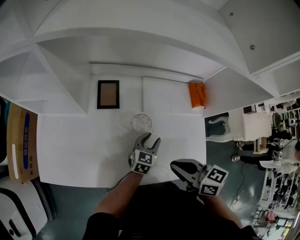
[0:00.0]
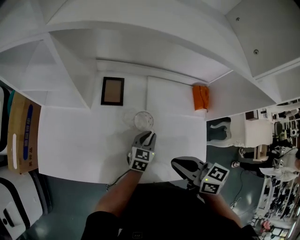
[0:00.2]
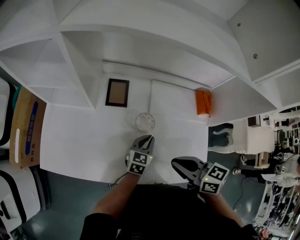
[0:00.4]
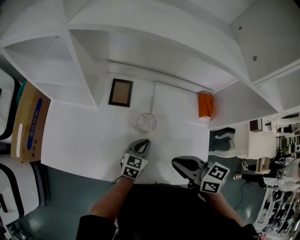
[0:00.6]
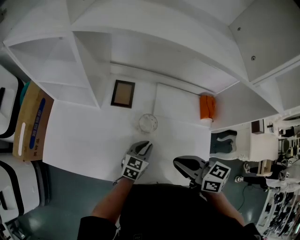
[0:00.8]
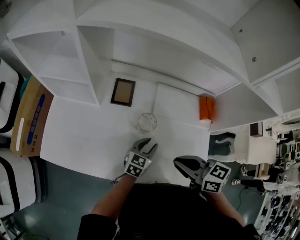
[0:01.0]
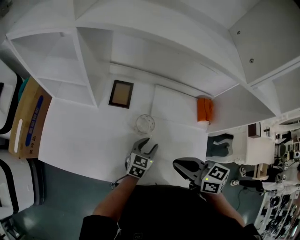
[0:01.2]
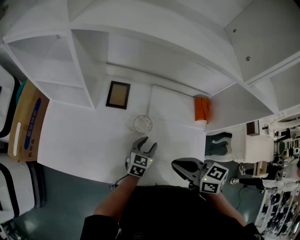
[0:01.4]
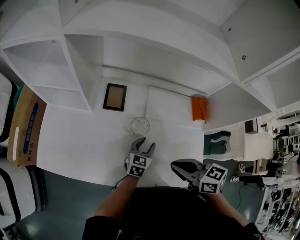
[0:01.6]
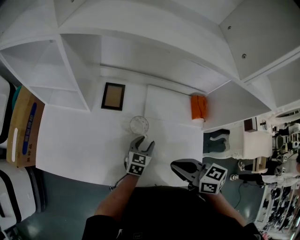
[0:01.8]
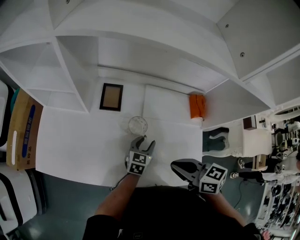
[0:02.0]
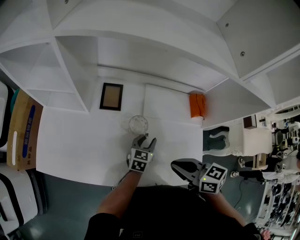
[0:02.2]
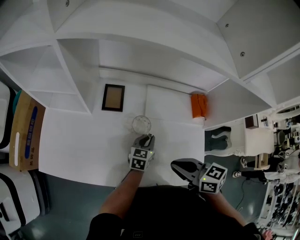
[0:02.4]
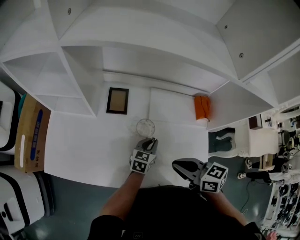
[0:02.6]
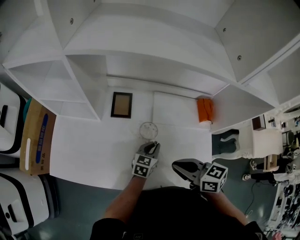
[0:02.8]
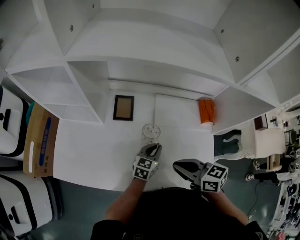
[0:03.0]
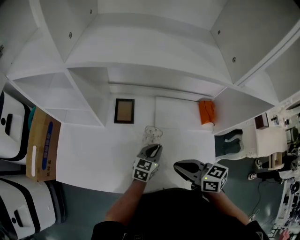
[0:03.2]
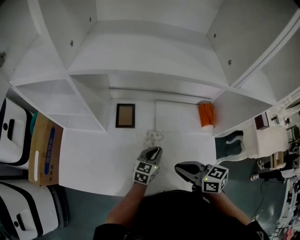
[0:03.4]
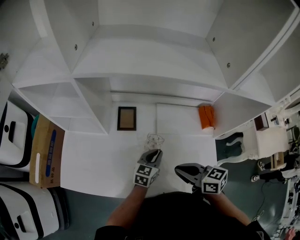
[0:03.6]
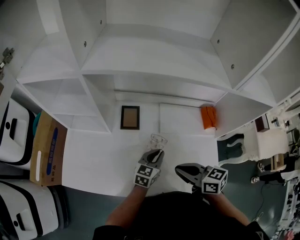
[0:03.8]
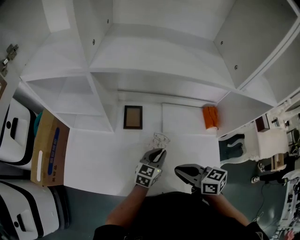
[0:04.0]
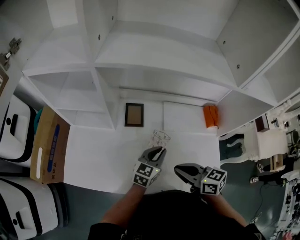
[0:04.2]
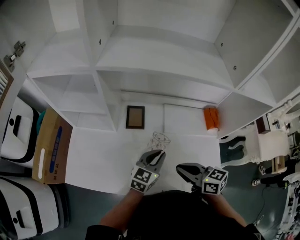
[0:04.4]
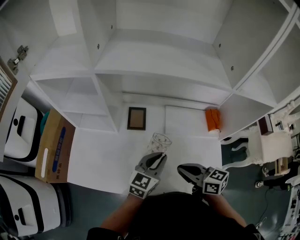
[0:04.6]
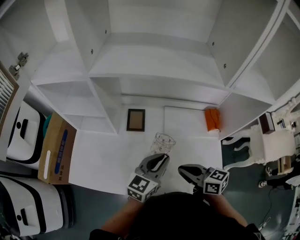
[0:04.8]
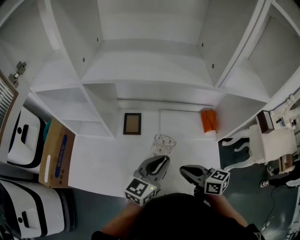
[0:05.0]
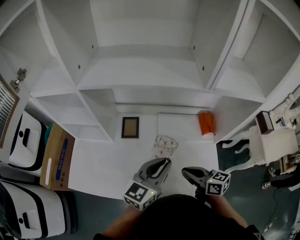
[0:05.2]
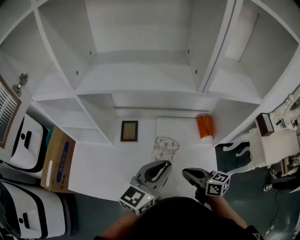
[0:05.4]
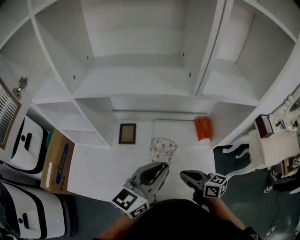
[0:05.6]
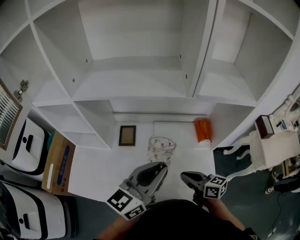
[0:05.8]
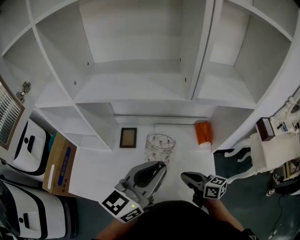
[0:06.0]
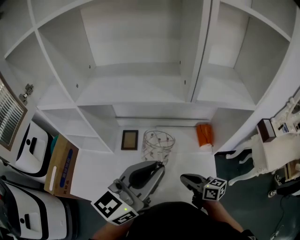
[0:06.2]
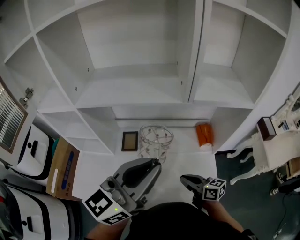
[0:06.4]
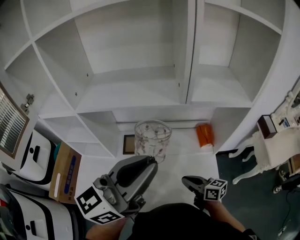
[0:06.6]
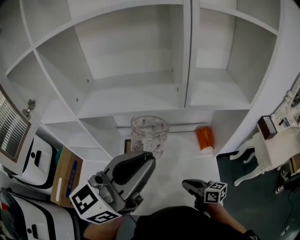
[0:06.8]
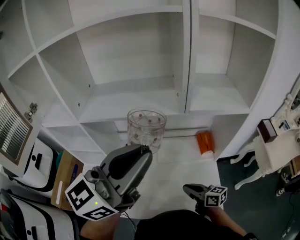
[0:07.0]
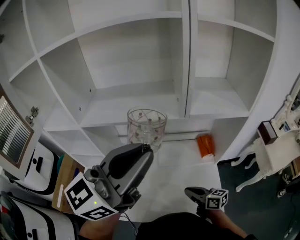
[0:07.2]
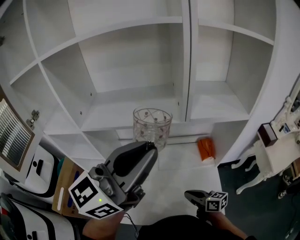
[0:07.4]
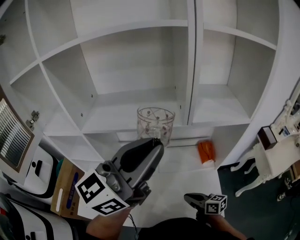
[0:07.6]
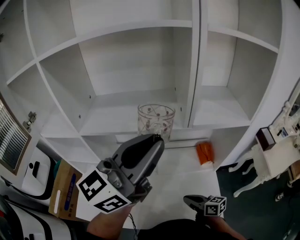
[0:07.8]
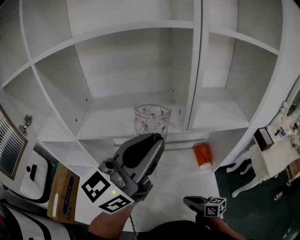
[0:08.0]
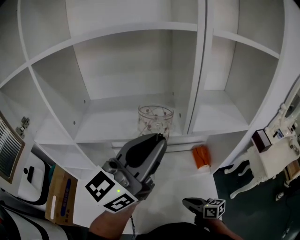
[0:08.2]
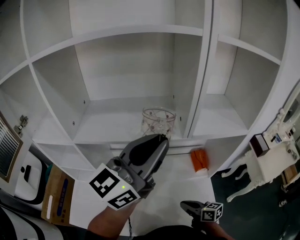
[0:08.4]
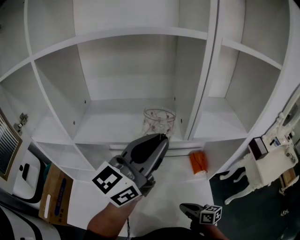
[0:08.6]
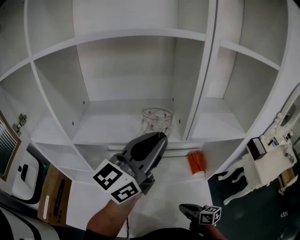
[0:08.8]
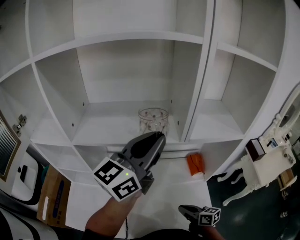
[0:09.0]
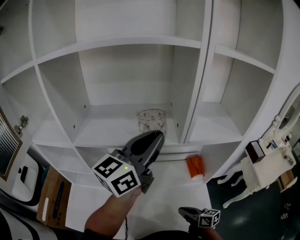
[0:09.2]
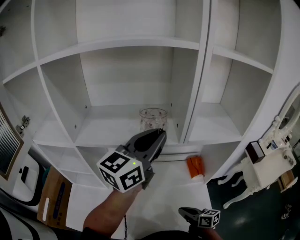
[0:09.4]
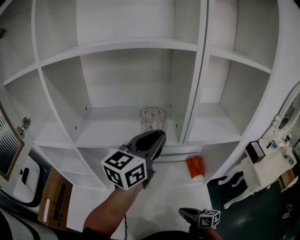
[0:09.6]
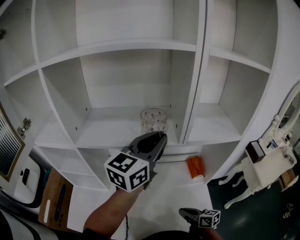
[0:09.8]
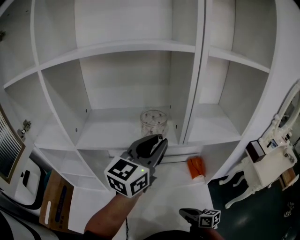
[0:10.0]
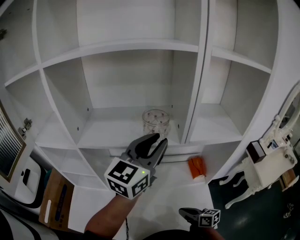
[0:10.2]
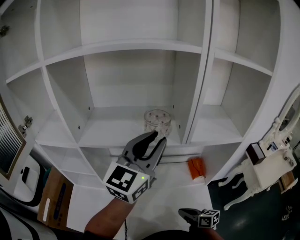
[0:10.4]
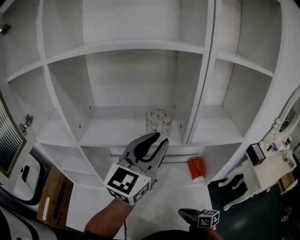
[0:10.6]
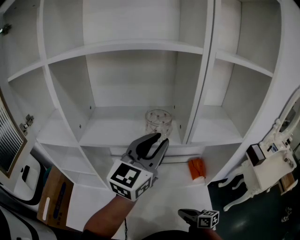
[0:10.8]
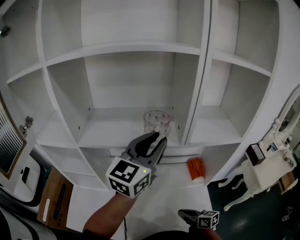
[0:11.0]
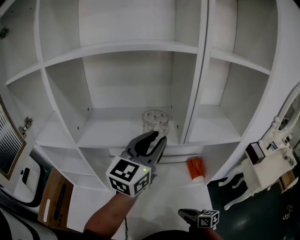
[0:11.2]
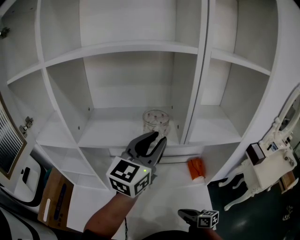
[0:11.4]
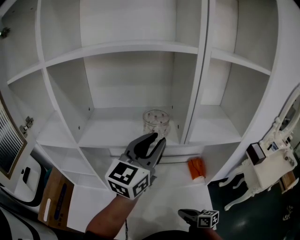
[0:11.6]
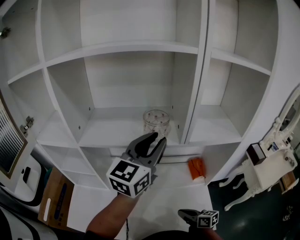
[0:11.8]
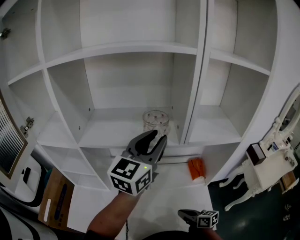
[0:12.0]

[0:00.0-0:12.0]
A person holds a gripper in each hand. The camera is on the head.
0:00.0 to 0:01.6: The left gripper closes and opens again.
0:01.6 to 0:03.0: The left gripper closes its fingers.
0:03.0 to 0:04.4: The left gripper travels upward and to the left by about 10 cm.
0:04.4 to 0:06.0: The right gripper moves to the right, about 15 cm, while the left gripper heads upward, covering approximately 25 cm, and changes its angle by about 20 degrees.
0:06.0 to 0:07.6: The left gripper moves upward, about 20 cm.
0:07.6 to 0:09.0: The left gripper is displaced forward by some 10 cm.
0:09.0 to 0:10.4: The left gripper changes its angle by roughly 20 degrees.
0:10.4 to 0:12.0: The grippers stay close to where they were, moving slightly.

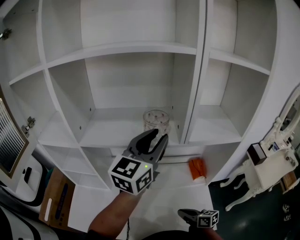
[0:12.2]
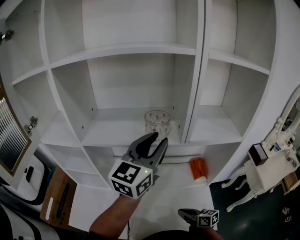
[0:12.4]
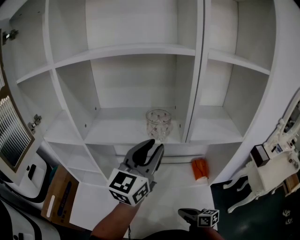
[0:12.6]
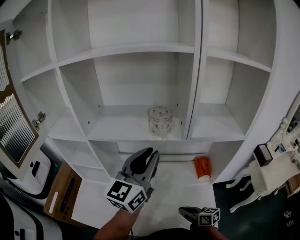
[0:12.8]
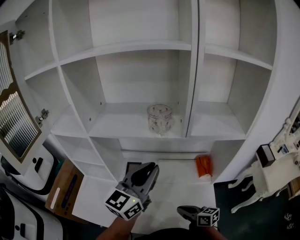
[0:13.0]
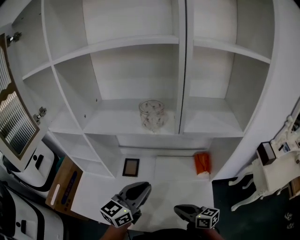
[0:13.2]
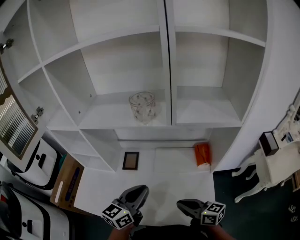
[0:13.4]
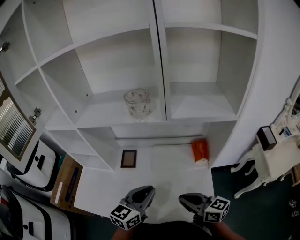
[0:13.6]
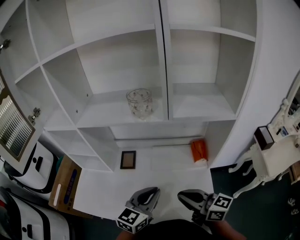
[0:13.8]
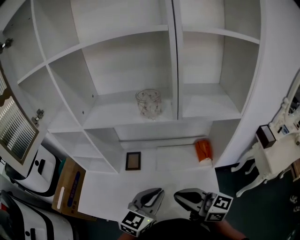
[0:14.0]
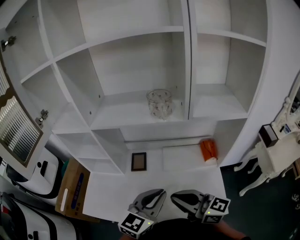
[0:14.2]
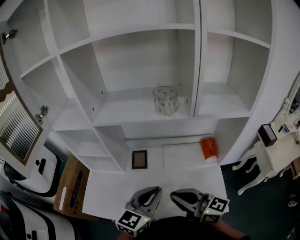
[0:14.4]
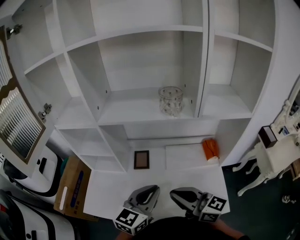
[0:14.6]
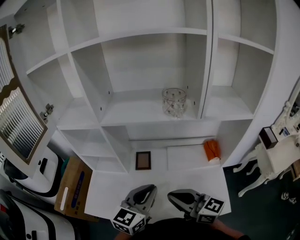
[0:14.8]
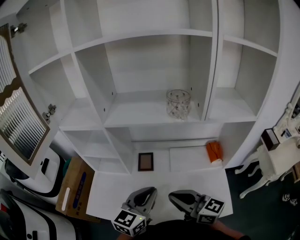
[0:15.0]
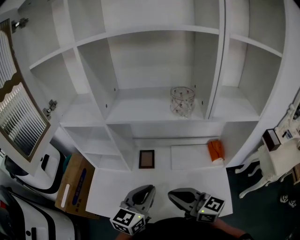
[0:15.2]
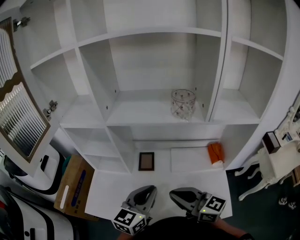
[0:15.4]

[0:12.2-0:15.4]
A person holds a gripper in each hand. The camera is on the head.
0:12.2 to 0:13.8: The left gripper heads downward and backward, covering approximately 30 cm, swivels approximately 20 degrees, and closes its fingers. Meanwhile the right gripper travels upward by some 15 cm, and turns by roughly 30 degrees.
0:13.8 to 0:15.4: The two grippers go roughly 15 cm to the left.

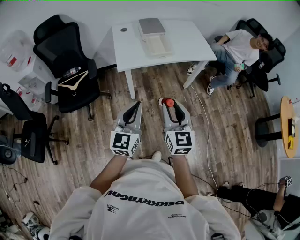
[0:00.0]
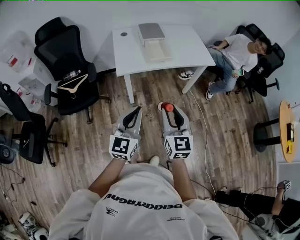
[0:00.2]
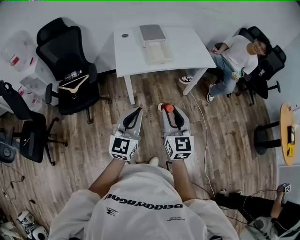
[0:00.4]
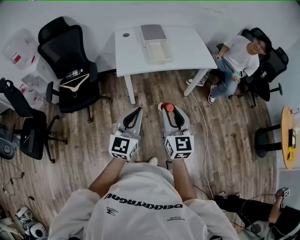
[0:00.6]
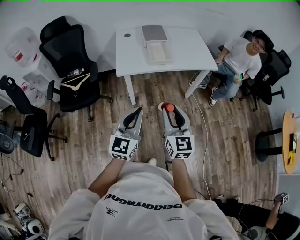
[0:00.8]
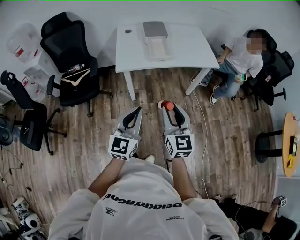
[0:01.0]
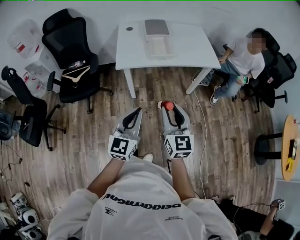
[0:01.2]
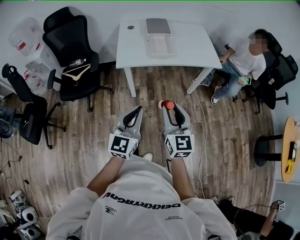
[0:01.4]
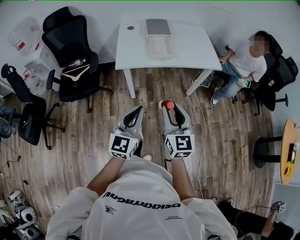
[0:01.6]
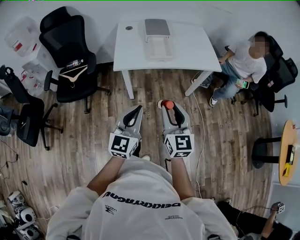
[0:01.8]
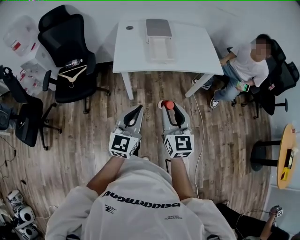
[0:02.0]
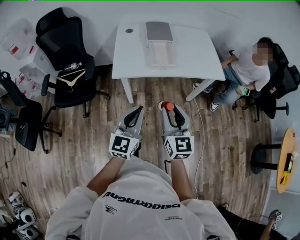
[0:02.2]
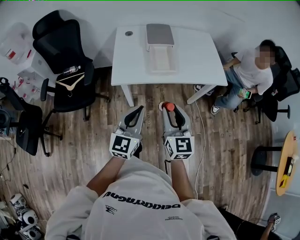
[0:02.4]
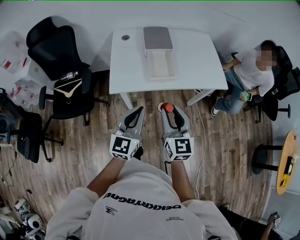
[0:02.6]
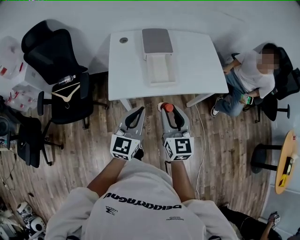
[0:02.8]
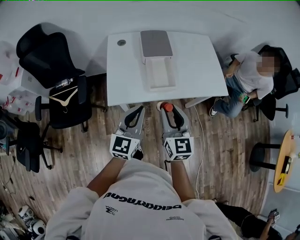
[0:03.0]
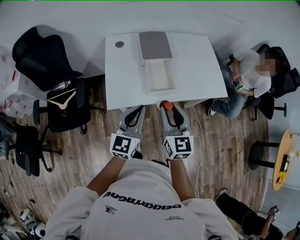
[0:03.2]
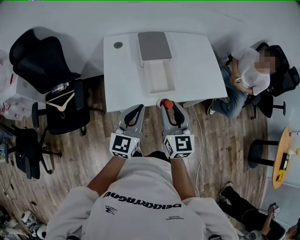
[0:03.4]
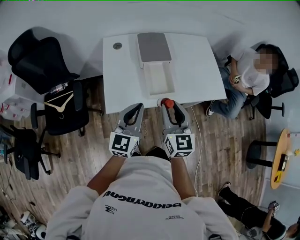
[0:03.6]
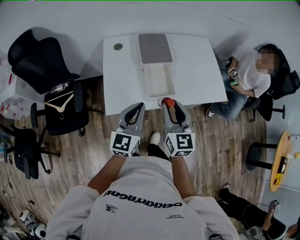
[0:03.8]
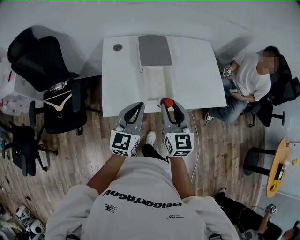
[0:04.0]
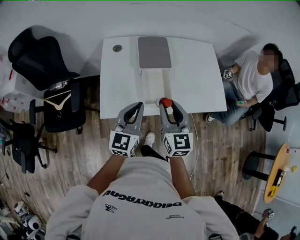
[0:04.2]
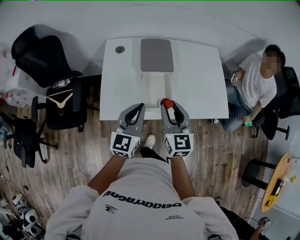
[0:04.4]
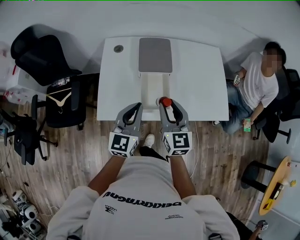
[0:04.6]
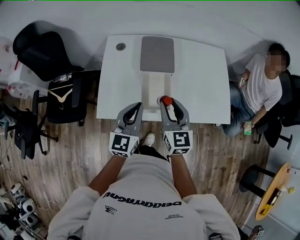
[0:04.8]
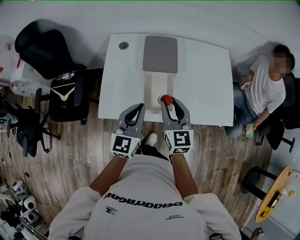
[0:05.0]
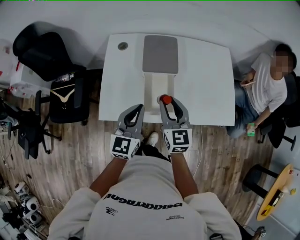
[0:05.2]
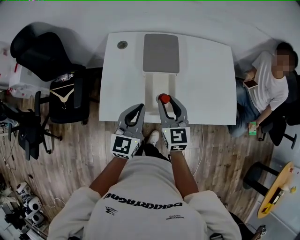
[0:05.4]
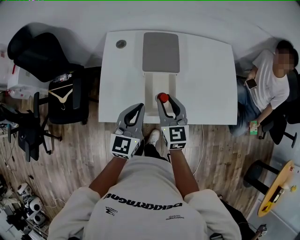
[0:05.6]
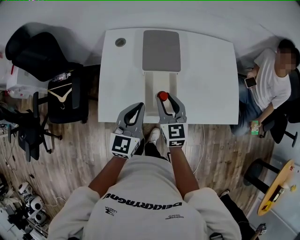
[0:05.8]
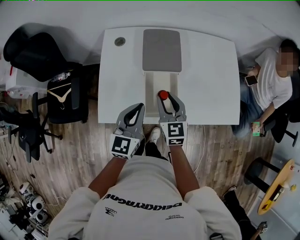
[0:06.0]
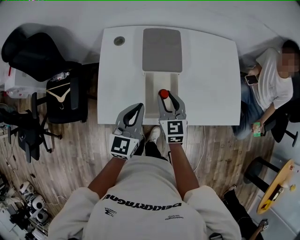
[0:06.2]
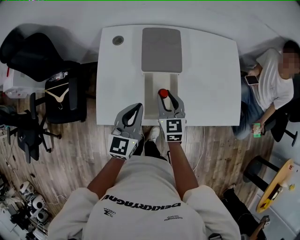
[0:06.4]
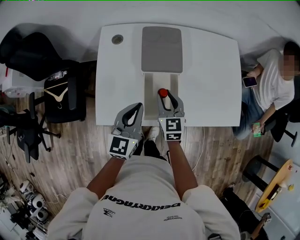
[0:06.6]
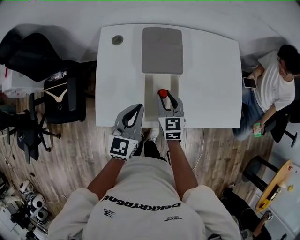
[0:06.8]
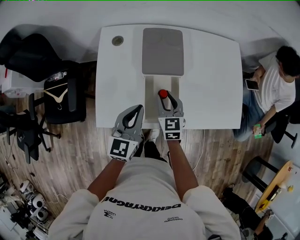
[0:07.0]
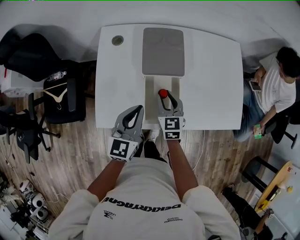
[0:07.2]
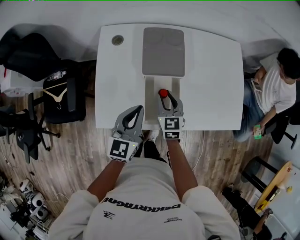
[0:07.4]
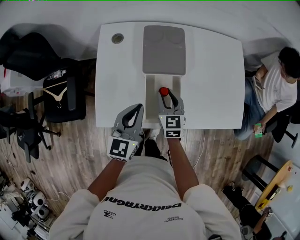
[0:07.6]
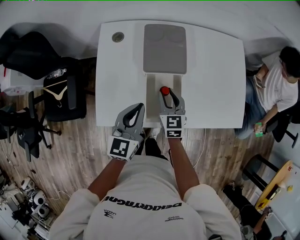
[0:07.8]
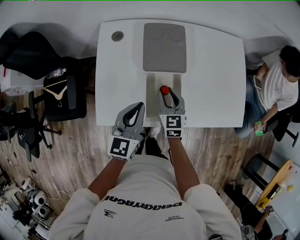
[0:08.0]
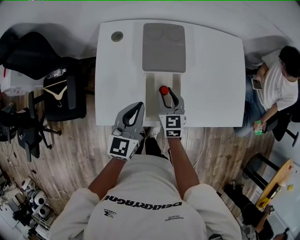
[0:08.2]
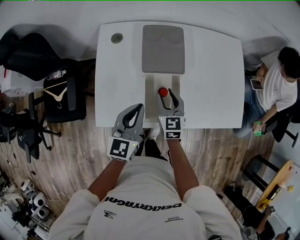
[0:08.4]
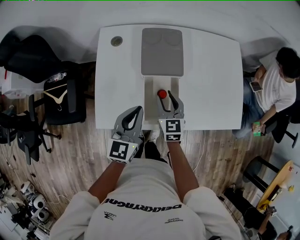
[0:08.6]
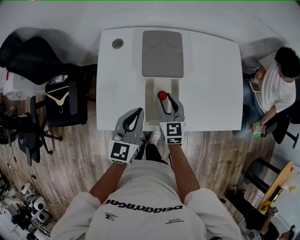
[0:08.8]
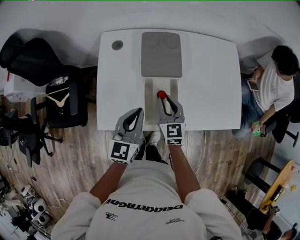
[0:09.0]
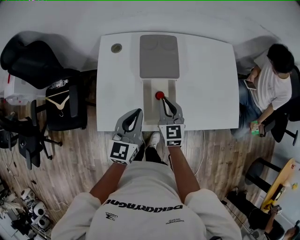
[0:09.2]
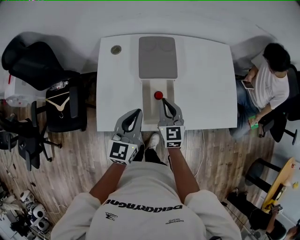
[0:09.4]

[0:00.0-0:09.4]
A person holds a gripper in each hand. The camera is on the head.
0:00.0 to 0:01.6: The two grippers go roughly 10 cm to the right.
0:01.6 to 0:03.2: Both grippers travel together forward, approximately 35 cm.
0:03.2 to 0:04.8: Both grippers move forward, roughly 15 cm.
0:04.8 to 0:06.2: The right gripper shifts approximately 15 cm downward and forward; the left gripper is displaced downward and forward by roughly 10 cm.
0:06.2 to 0:07.8: The right gripper is displaced downward by roughly 5 cm.
0:07.8 to 0:09.4: The right gripper goes roughly 5 cm upward, and closes.
